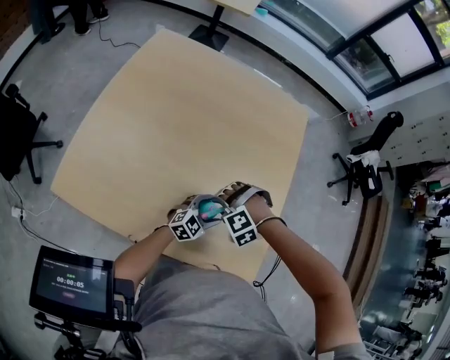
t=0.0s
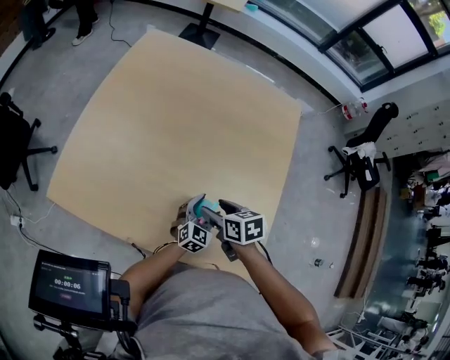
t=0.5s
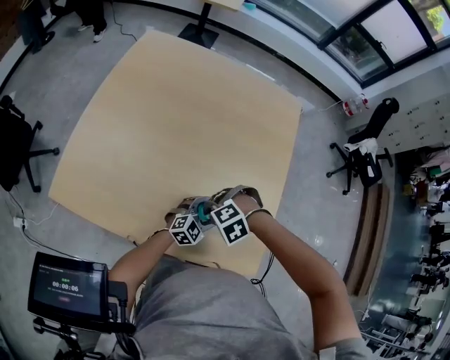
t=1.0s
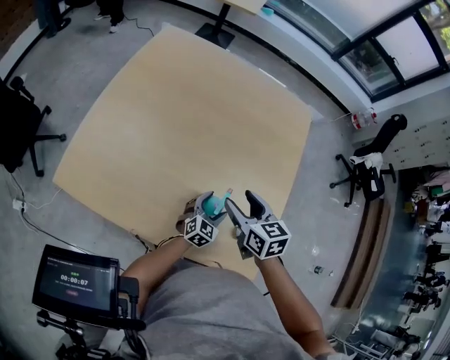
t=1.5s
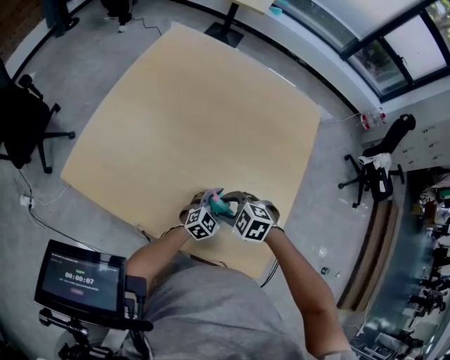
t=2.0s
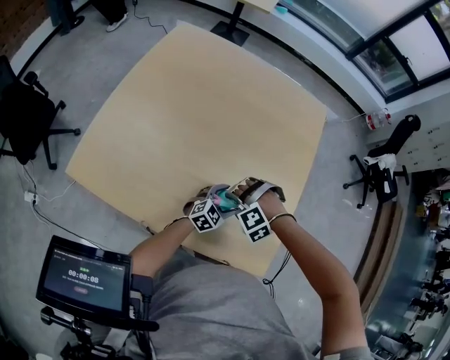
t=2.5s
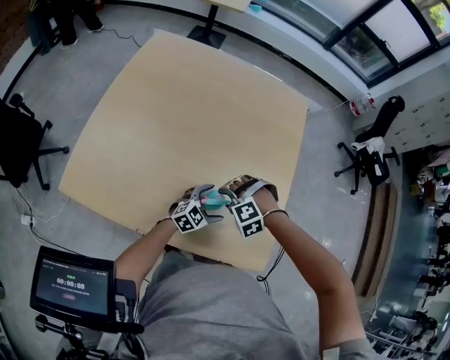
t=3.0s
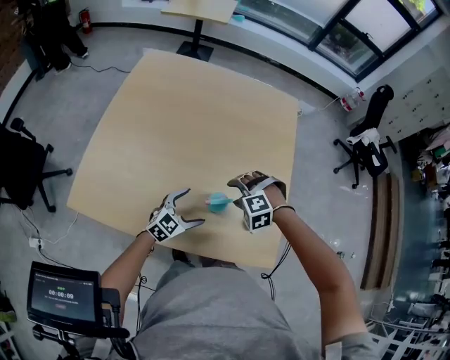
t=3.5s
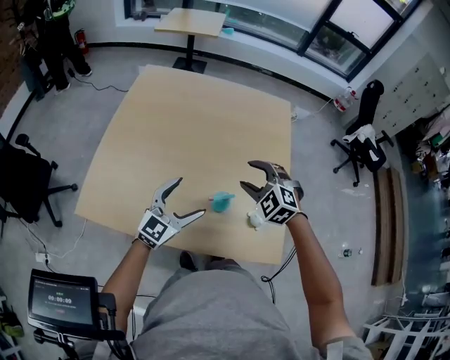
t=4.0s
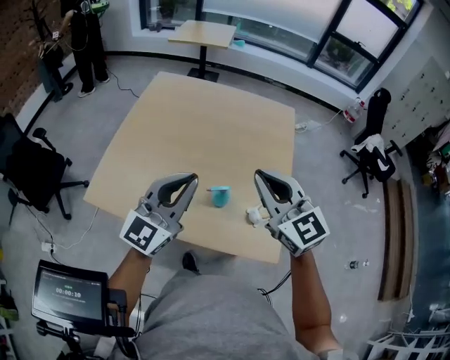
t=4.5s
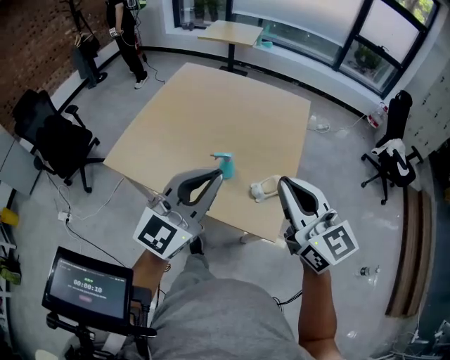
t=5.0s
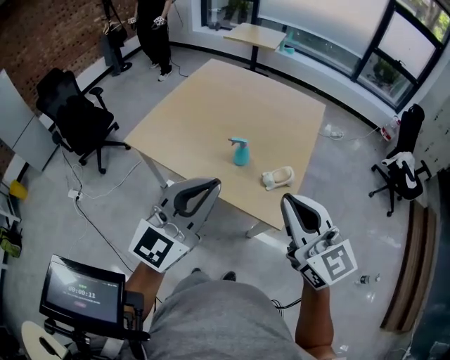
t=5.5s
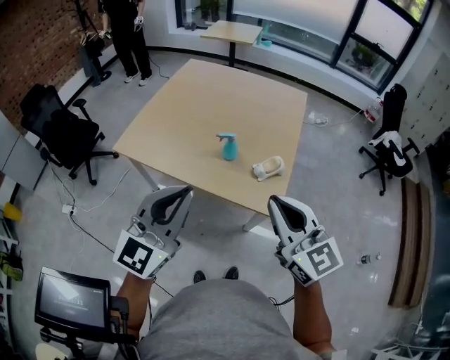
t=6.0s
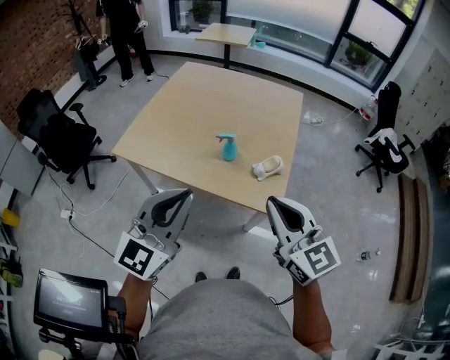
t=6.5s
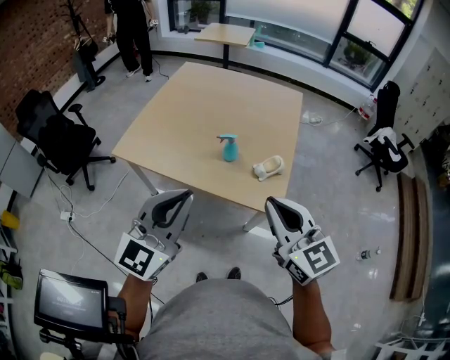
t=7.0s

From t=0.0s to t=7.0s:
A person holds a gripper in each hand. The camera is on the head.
From t=0.0s to t=2.0s: The right gripper goes upward and returns, about 10 cm each way, and rotates around the line of its fingers by about 50 degrees, clockwise from behind.
From t=2.0s to t=3.5s: The left gripper moves about 15 cm. Meanwhile the right gripper rotates roughly 30 degrees.
From t=3.5s to t=5.0s: The right gripper goes roughly 50 cm upward, backward and to the right, angles its fingers upward, by approximately 70 degrees, and closes up. Meanwhile the left gripper moves upward and backward, approximately 50 cm, tilts its fingers some 40 degrees upward, and closes.
From t=5.0s to t=7.0s: The right gripper is displaced backward by approximately 15 cm. The left gripper heads backward and to the left, covering some 15 cm.

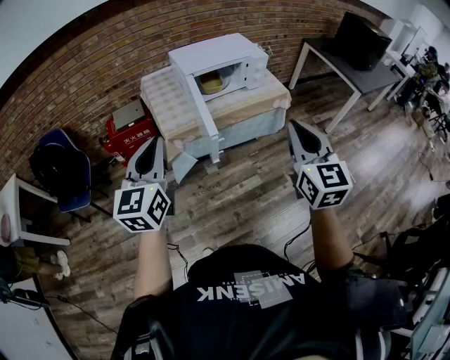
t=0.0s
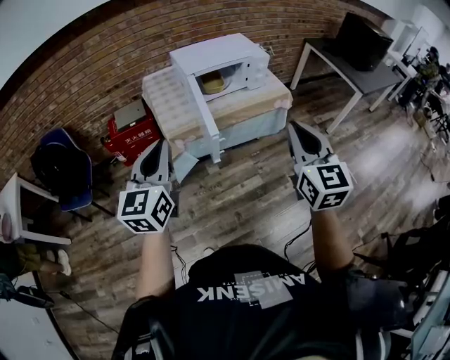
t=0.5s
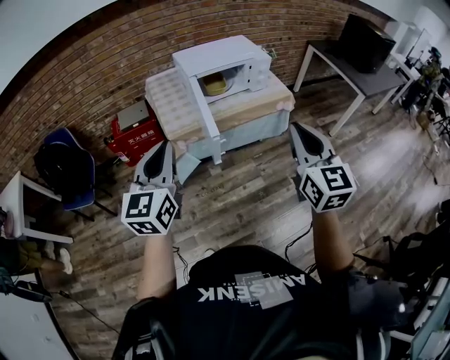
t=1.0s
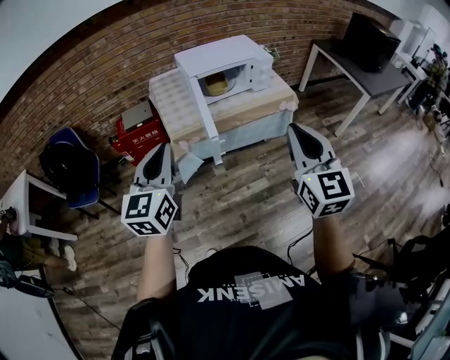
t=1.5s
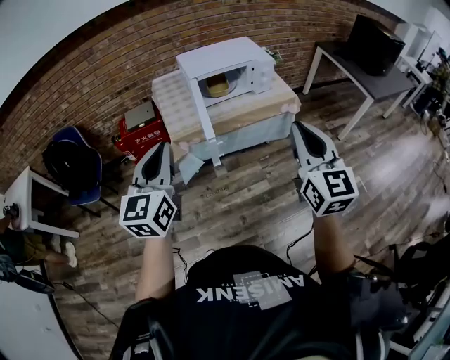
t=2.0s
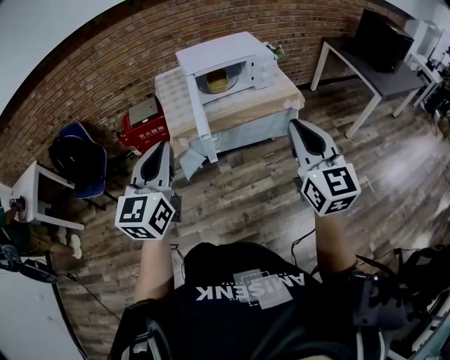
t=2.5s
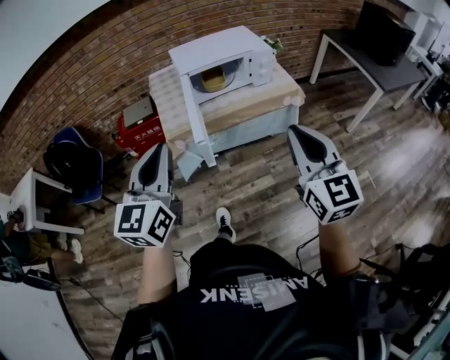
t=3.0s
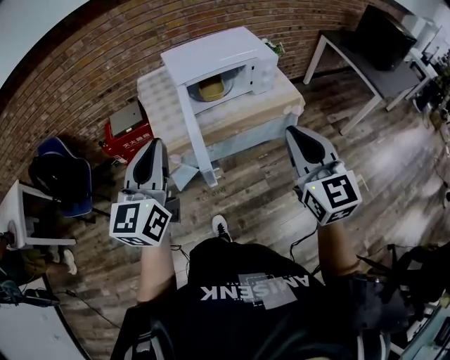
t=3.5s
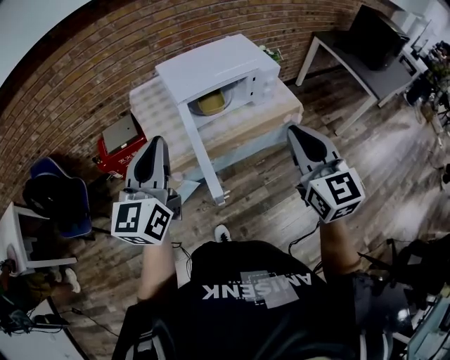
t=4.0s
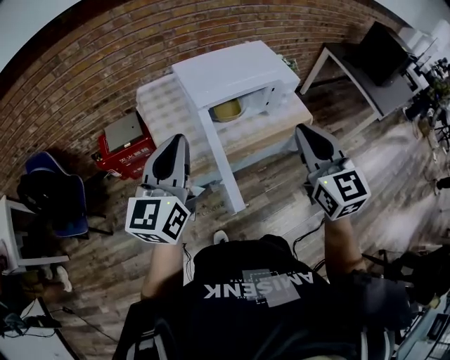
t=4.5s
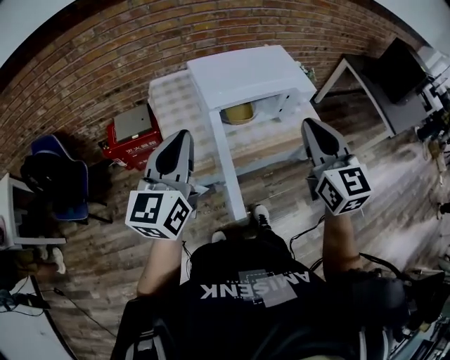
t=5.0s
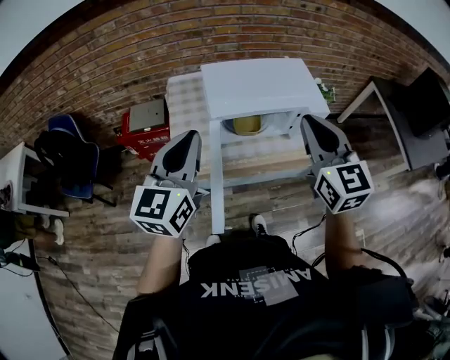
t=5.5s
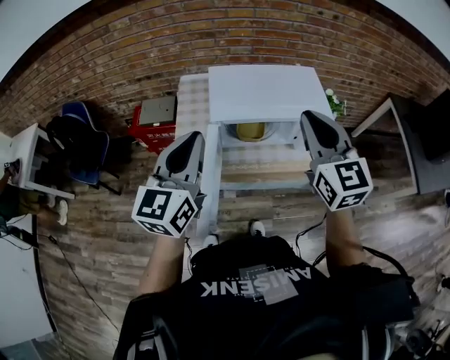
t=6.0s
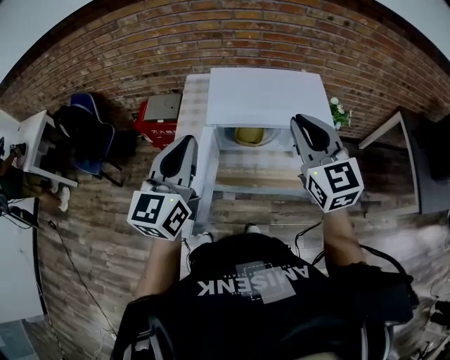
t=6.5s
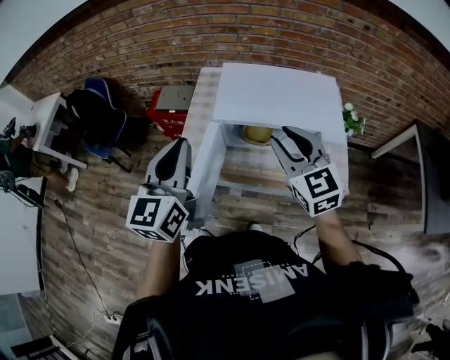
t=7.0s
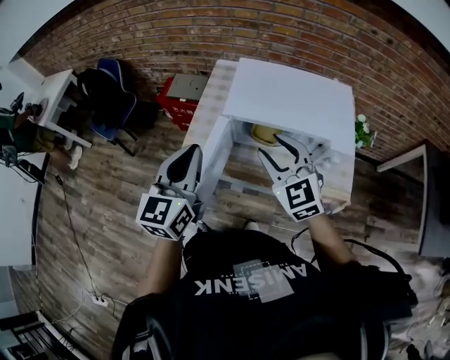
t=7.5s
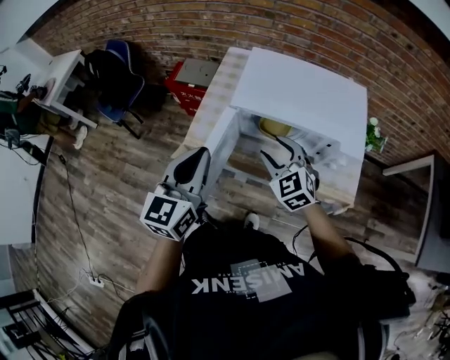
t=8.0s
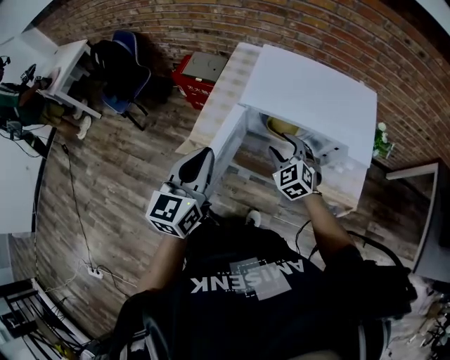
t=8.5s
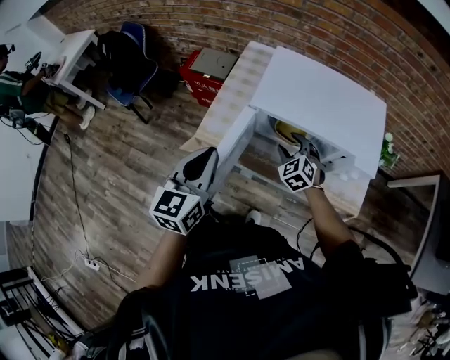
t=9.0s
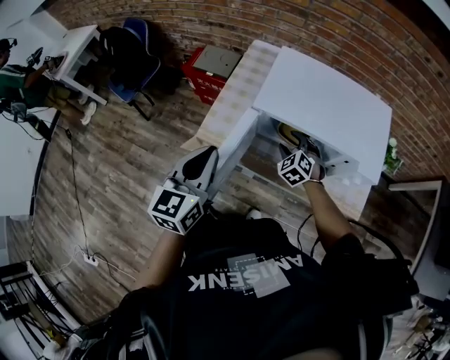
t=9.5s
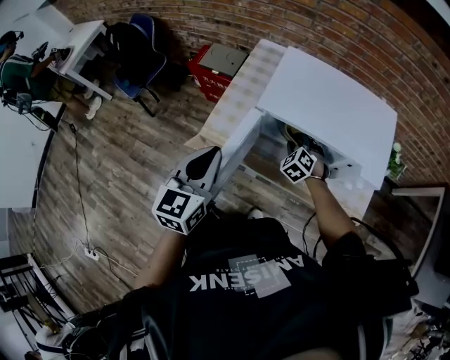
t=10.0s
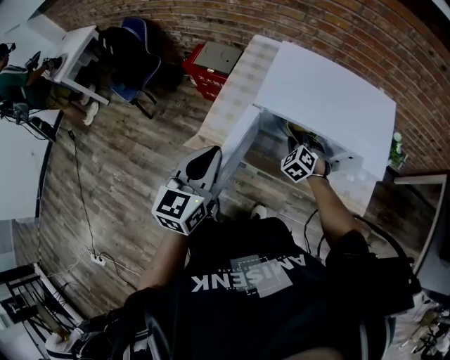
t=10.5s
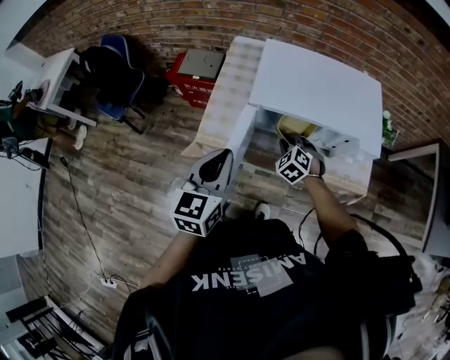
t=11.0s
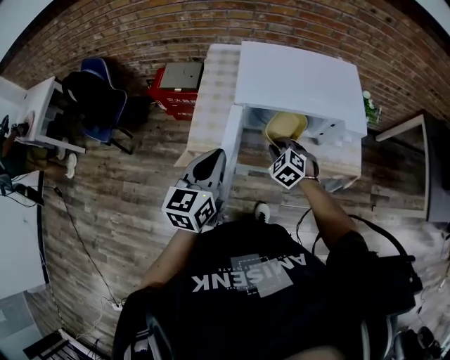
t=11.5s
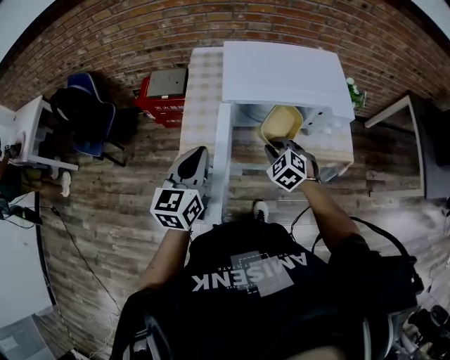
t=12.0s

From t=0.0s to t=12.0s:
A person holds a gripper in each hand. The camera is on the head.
From t=0.0s to t=2.0s: The left gripper goes about 5 cm to the right.
From t=2.0s to t=4.0s: The two grippers go some 25 cm forward.
From t=4.0s to t=6.0s: The right gripper heads forward, covering about 25 cm, and turns by approximately 20 degrees. The left gripper goes approximately 15 cm forward and to the right.
From t=6.0s to t=8.0s: The right gripper moves downward, about 25 cm, swivels approximately 40 degrees, and opens; the left gripper heads downward, covering about 10 cm.
From t=8.0s to t=10.0s: The left gripper ends up roughly 5 cm from where it was, while the right gripper is displaced downward and forward by roughly 20 cm, and turns by about 30 degrees.
From t=10.0s to t=12.0s: The right gripper goes about 15 cm backward and upward.

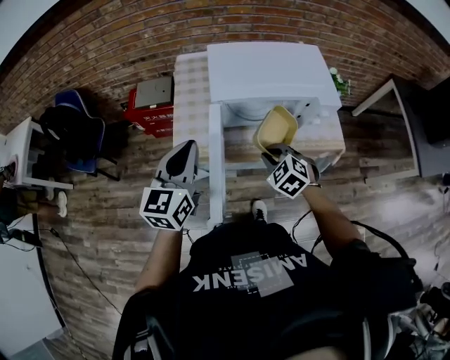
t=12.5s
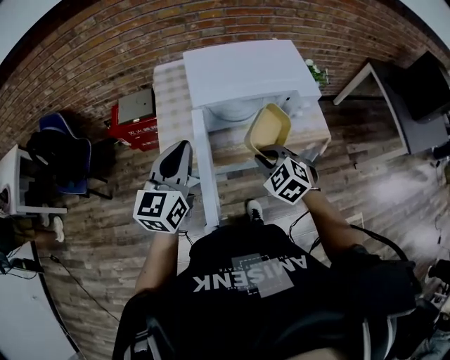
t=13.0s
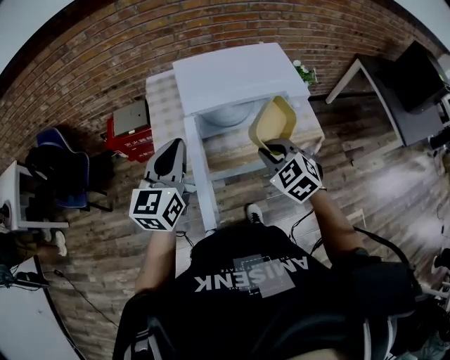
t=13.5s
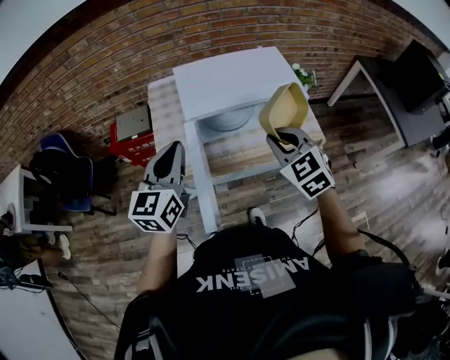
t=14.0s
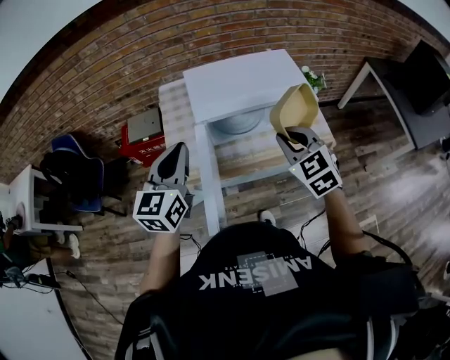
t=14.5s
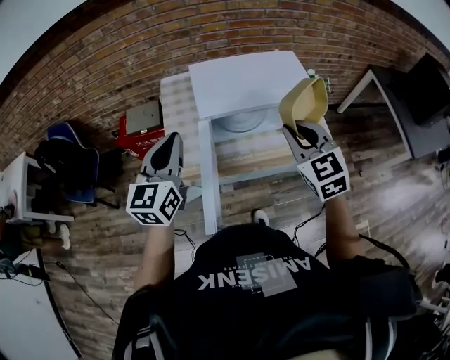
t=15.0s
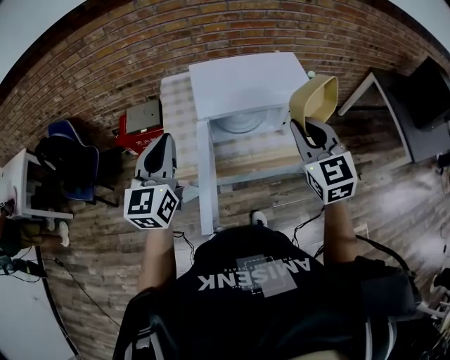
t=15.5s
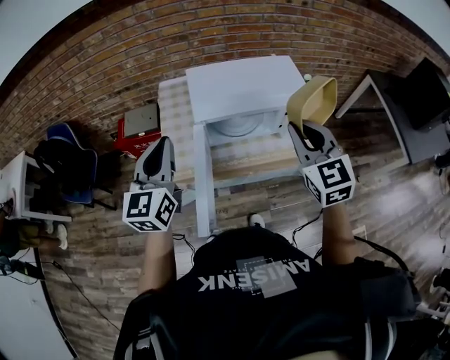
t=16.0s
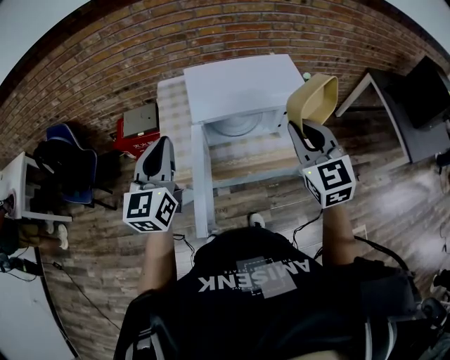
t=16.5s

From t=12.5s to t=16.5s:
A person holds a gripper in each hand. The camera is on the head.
From t=12.5s to t=14.5s: The left gripper ends up about 5 cm from where it was; the right gripper shifts about 15 cm upward, and turns by approximately 30 degrees.
From t=14.5s to t=16.5s: The right gripper moves upward, about 10 cm.

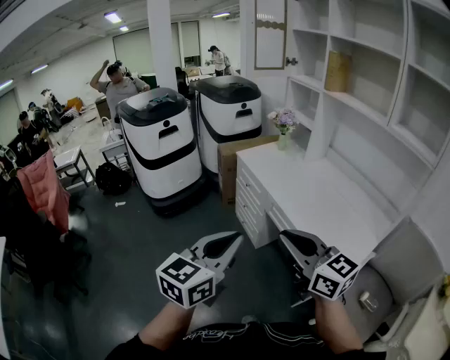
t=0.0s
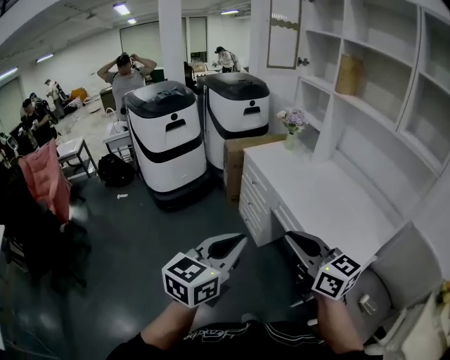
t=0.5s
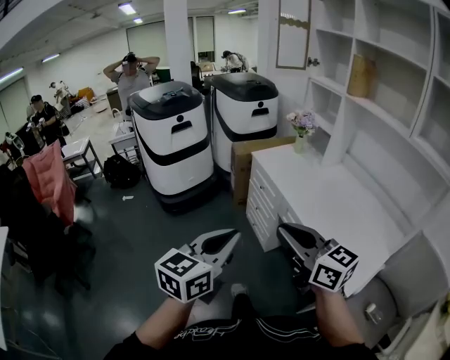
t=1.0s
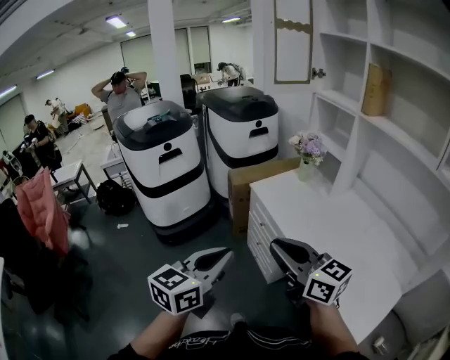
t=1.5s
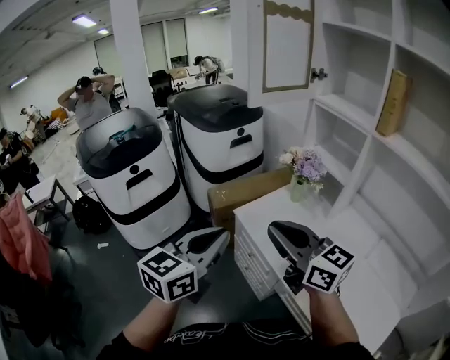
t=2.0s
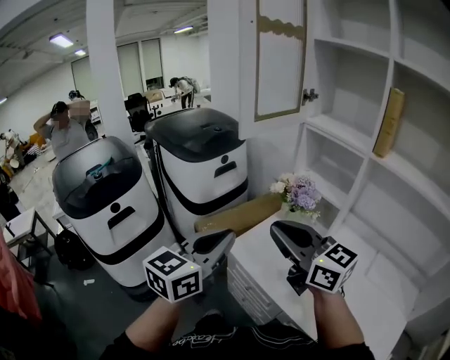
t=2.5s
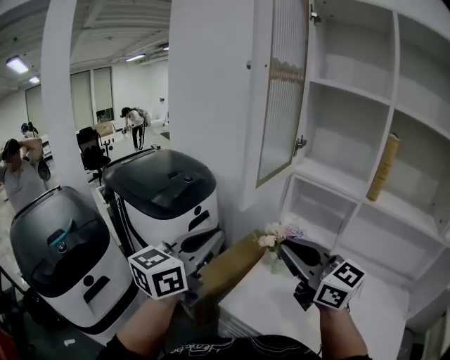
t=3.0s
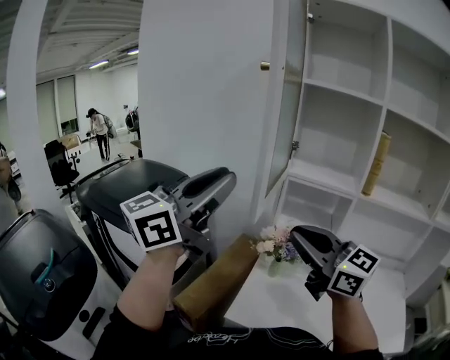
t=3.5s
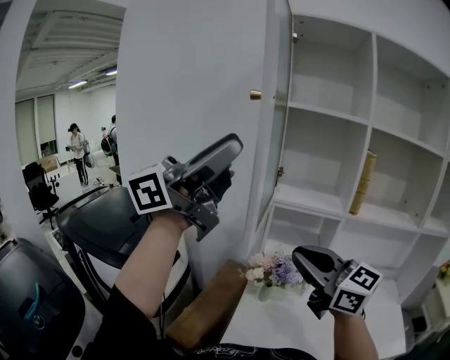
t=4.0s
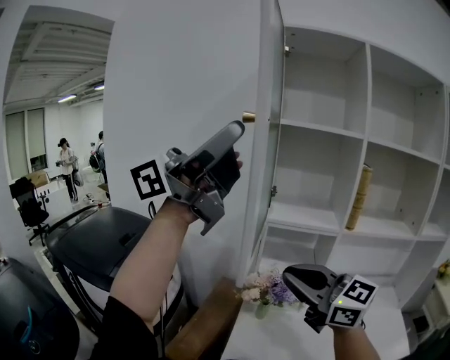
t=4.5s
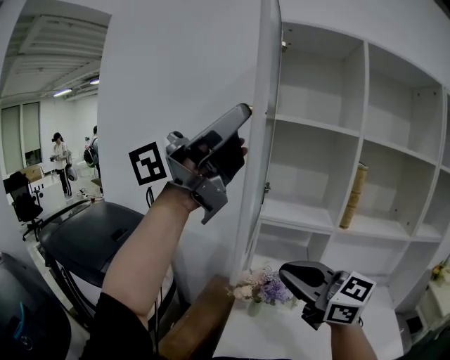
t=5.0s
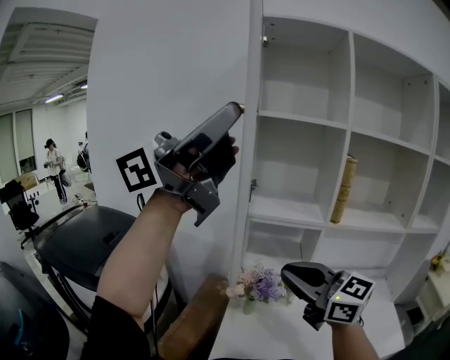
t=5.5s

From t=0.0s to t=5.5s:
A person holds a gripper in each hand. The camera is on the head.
From t=0.0s to t=2.0s: The pair of grippers is taken forward, roughly 60 cm.
From t=2.0s to t=3.5s: The left gripper ends up some 50 cm from where it was, and swivels roughly 50 degrees; the right gripper changes place by approximately 30 cm, and changes its angle by some 40 degrees.
From t=3.5s to t=5.5s: The right gripper ends up about 5 cm from where it was. The left gripper is displaced upward by approximately 20 cm, changes its angle by roughly 50 degrees, and opens, then closes once more.
